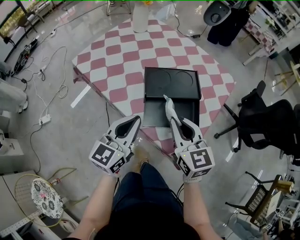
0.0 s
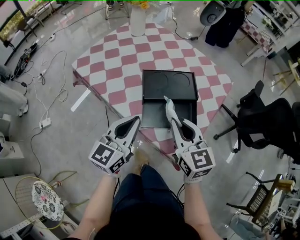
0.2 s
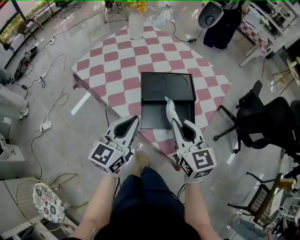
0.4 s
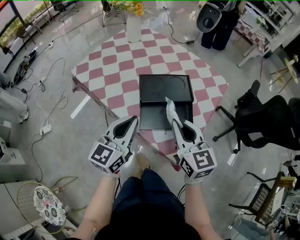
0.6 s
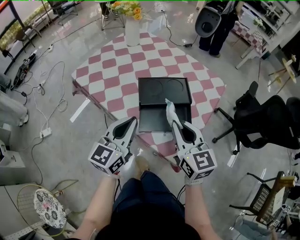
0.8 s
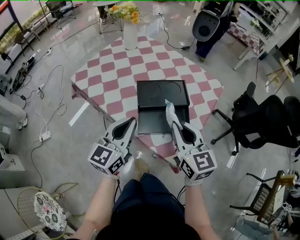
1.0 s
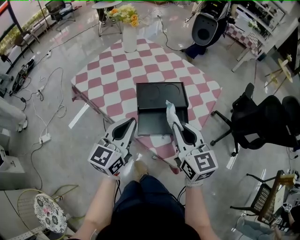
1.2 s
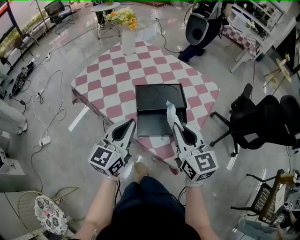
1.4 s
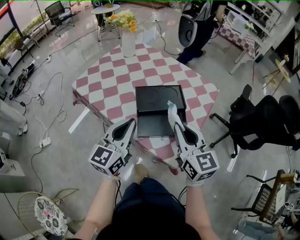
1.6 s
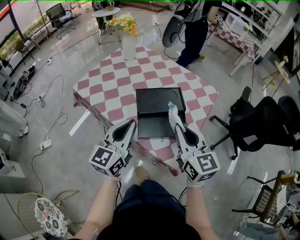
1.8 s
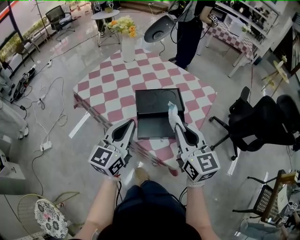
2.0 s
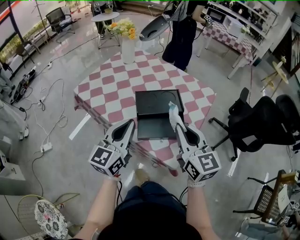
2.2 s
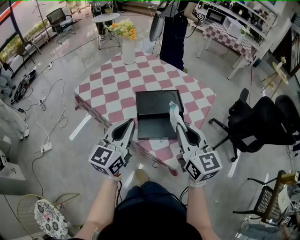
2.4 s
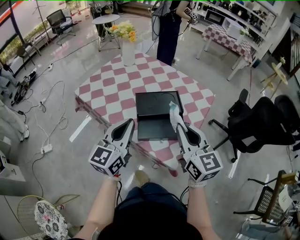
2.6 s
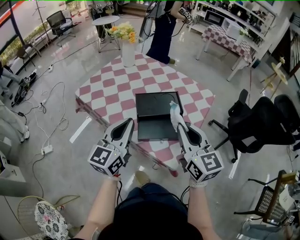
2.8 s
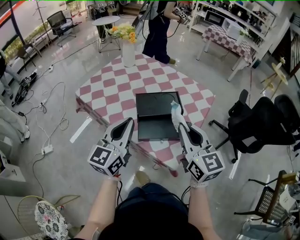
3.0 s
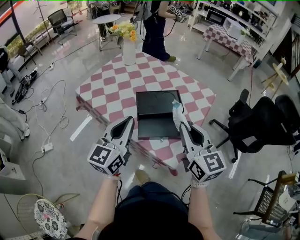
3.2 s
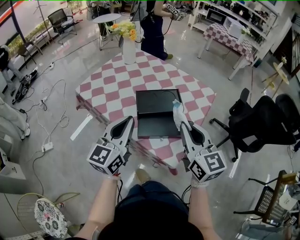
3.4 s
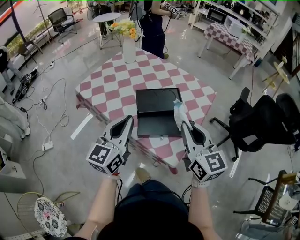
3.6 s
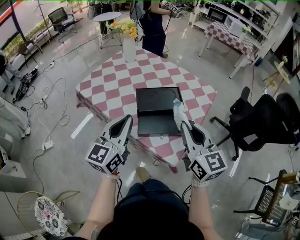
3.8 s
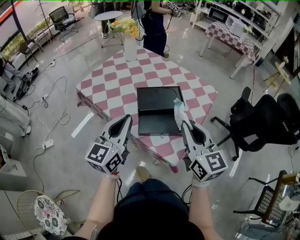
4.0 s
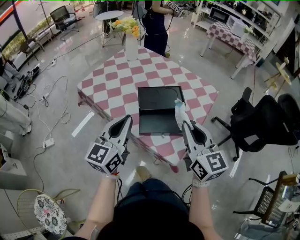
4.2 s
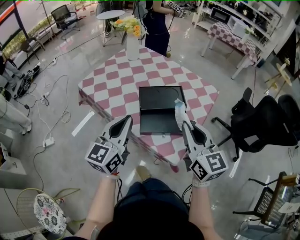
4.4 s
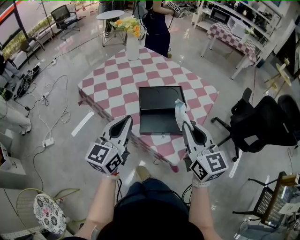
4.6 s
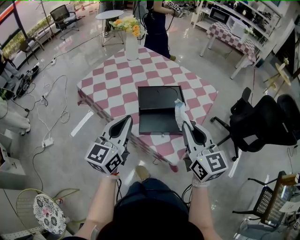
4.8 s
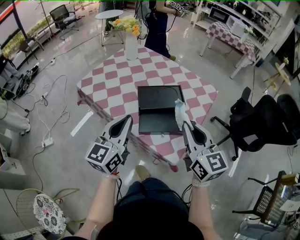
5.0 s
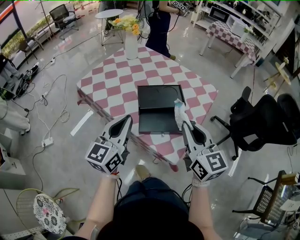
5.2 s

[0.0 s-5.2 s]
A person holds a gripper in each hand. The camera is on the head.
0.0 to 1.8 s: The grippers both shift upward by roughly 10 cm.
1.8 to 5.2 s: The grippers move only a little.

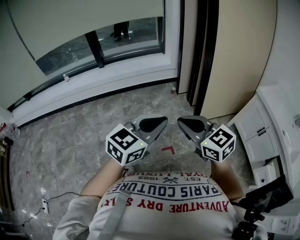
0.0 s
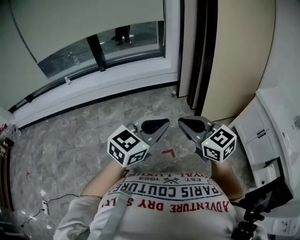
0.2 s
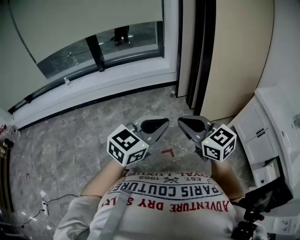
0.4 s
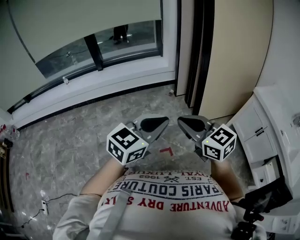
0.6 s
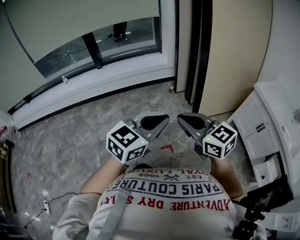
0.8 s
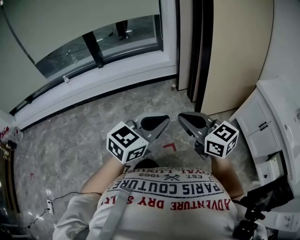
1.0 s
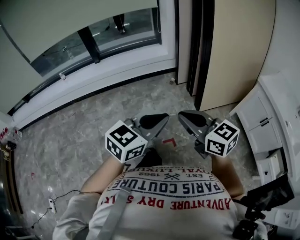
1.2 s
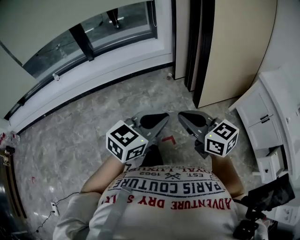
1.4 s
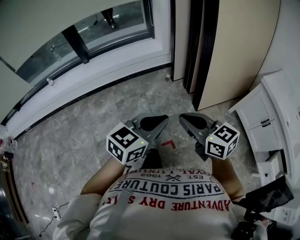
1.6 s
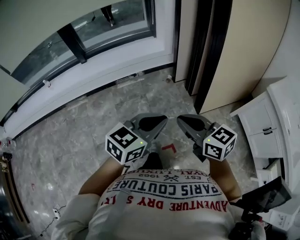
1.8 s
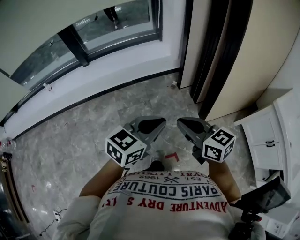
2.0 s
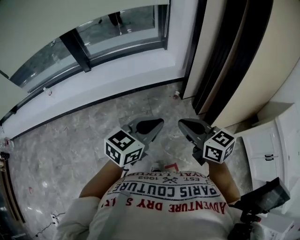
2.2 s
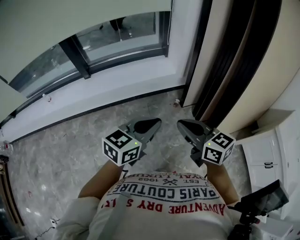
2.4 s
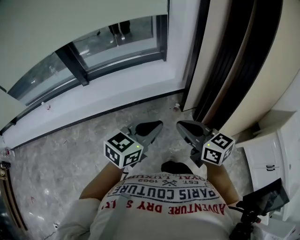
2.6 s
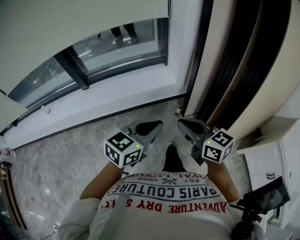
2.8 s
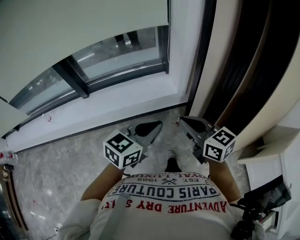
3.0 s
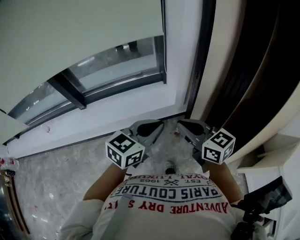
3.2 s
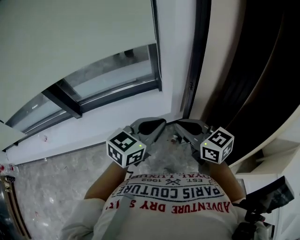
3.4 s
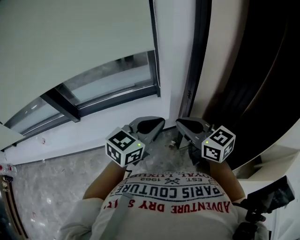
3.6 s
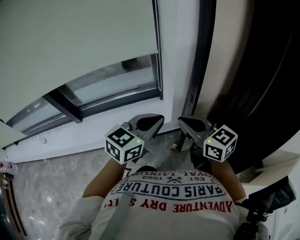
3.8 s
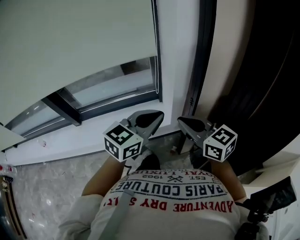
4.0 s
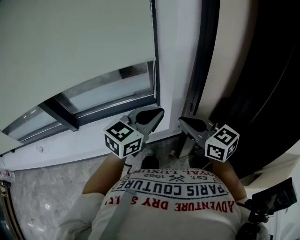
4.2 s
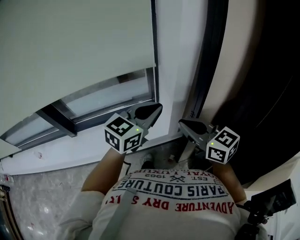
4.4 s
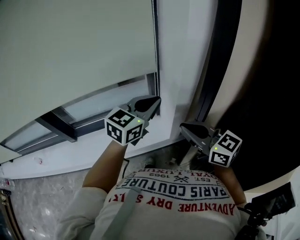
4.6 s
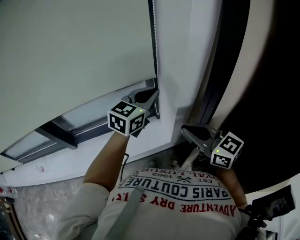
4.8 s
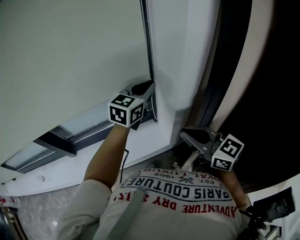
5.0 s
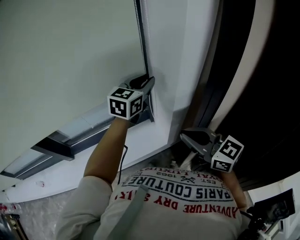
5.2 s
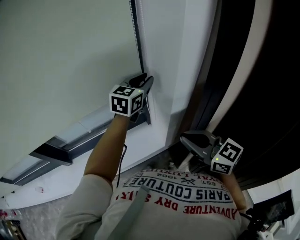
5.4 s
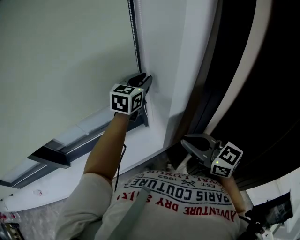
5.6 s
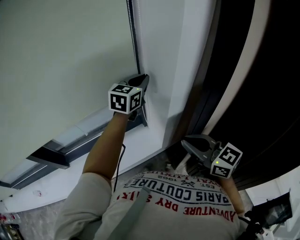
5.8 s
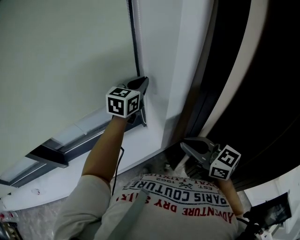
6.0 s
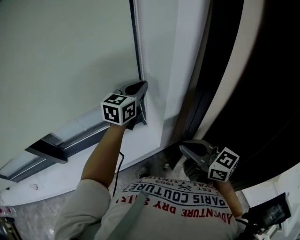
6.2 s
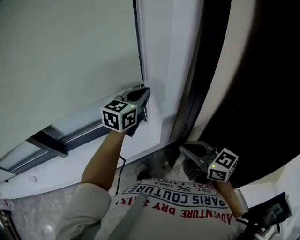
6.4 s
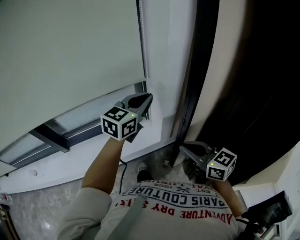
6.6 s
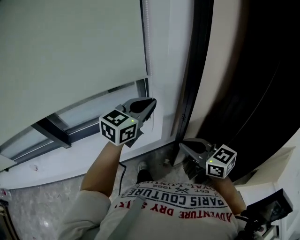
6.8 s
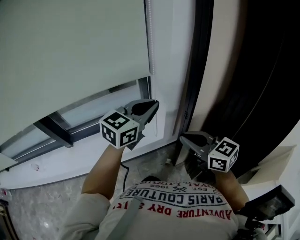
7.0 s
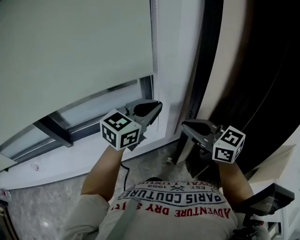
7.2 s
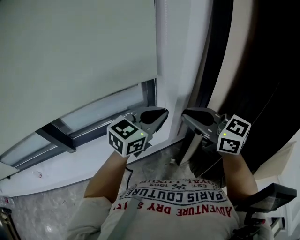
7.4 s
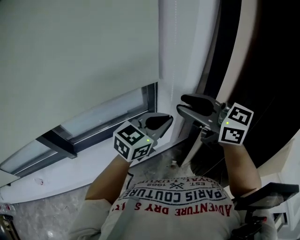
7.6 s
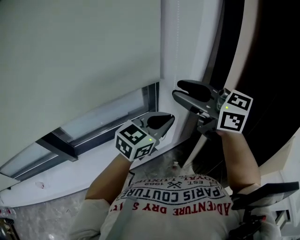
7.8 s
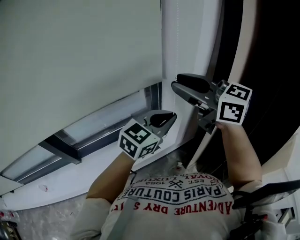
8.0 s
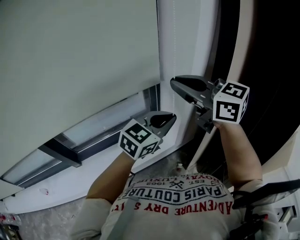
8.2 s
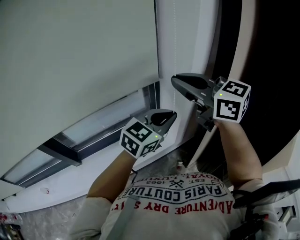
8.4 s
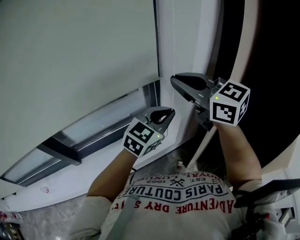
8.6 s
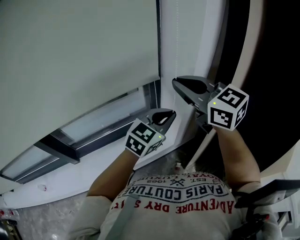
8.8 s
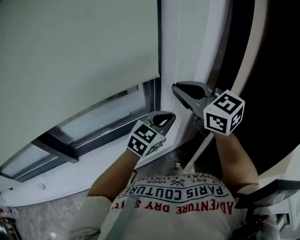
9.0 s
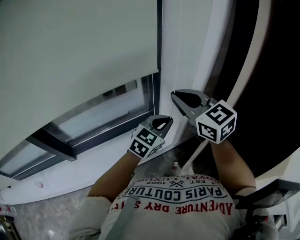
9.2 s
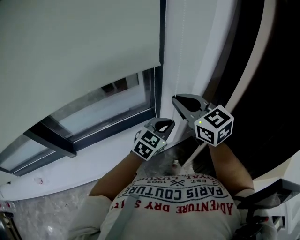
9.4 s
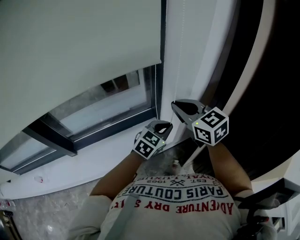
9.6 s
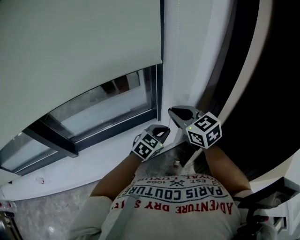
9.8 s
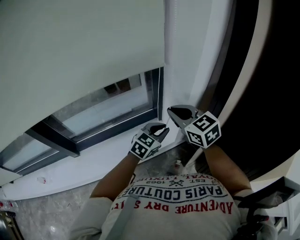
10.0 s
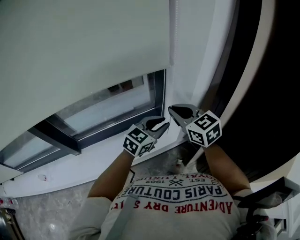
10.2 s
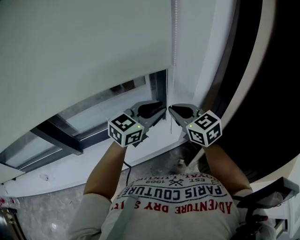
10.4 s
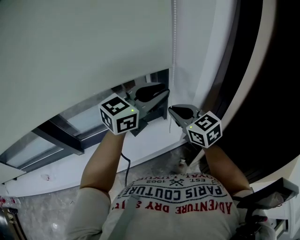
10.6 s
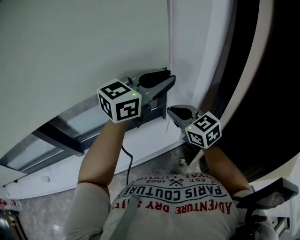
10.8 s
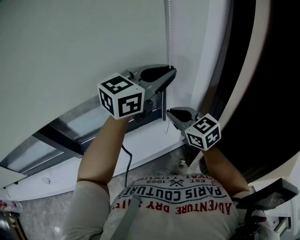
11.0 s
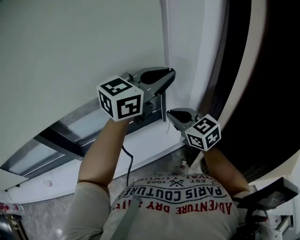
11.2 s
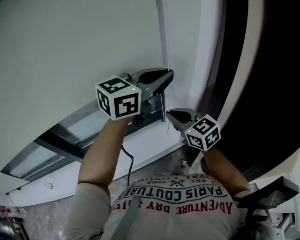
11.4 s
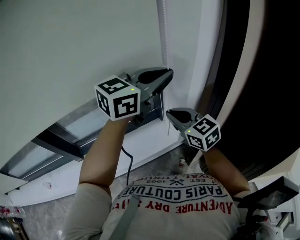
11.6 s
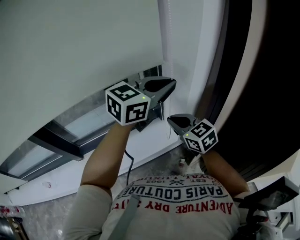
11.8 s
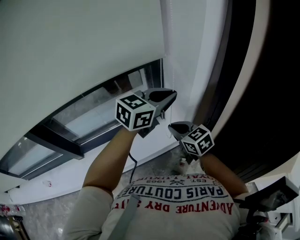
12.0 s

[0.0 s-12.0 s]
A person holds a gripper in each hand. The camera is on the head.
0.0 to 1.6 s: The grippers both shift forward and downward by roughly 15 cm.
1.6 to 3.0 s: The pair of grippers is taken forward, some 50 cm.
3.0 to 4.4 s: Both grippers move forward, some 30 cm.
4.4 to 6.0 s: The left gripper moves forward, about 25 cm, and opens, then closes again.
6.0 to 7.6 s: The left gripper travels backward by some 30 cm, and swivels some 20 degrees; the right gripper is displaced upward and to the left by some 20 cm, and opens.
7.6 to 9.0 s: The right gripper travels forward by about 10 cm, and closes up. The left gripper moves forward and downward, about 10 cm.
9.0 to 10.4 s: The left gripper travels to the left by approximately 5 cm, goes downward and returns, approximately 15 cm each way, and opens up. The right gripper shifts some 15 cm downward.
10.4 to 12.0 s: The left gripper travels to the right by approximately 5 cm, travels upward and back again, about 15 cm each way, and closes up, while the right gripper is displaced downward by some 10 cm.

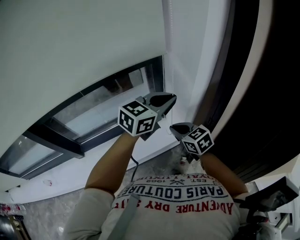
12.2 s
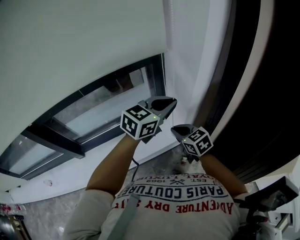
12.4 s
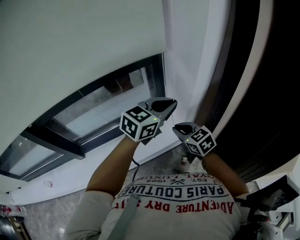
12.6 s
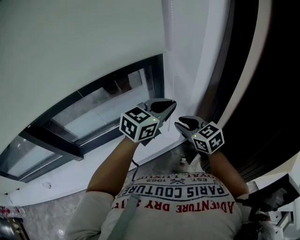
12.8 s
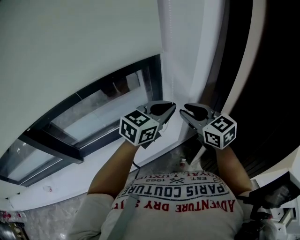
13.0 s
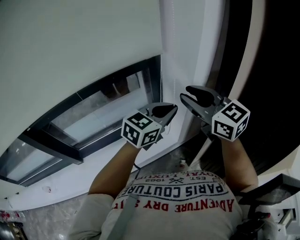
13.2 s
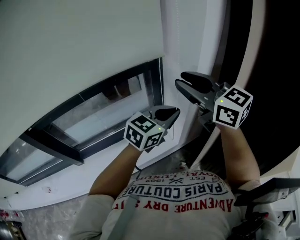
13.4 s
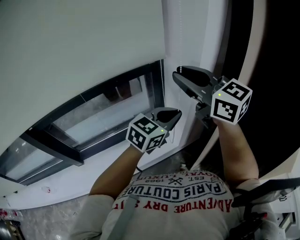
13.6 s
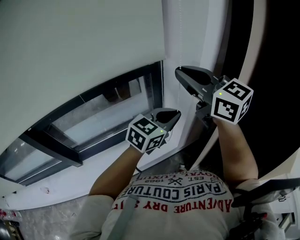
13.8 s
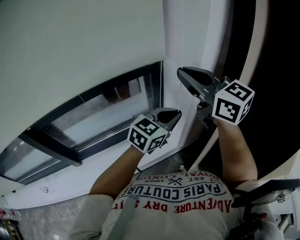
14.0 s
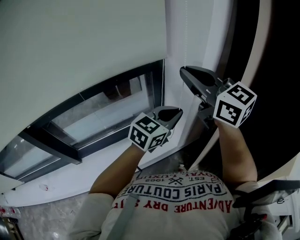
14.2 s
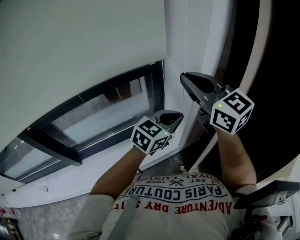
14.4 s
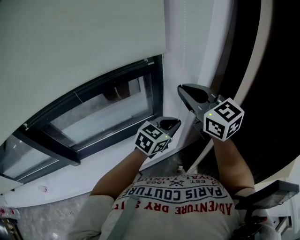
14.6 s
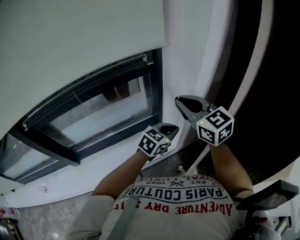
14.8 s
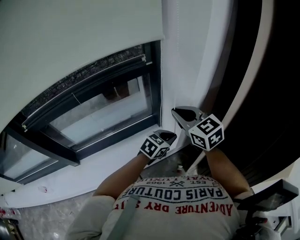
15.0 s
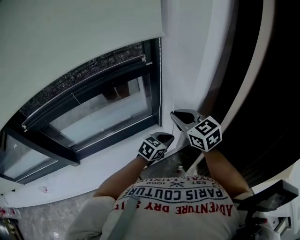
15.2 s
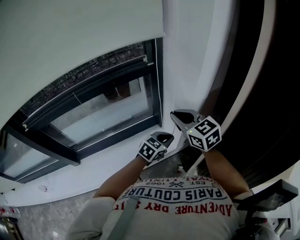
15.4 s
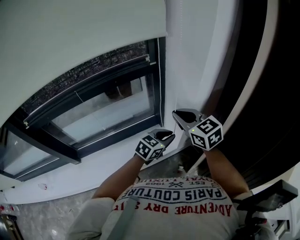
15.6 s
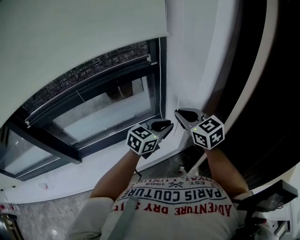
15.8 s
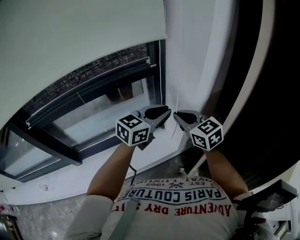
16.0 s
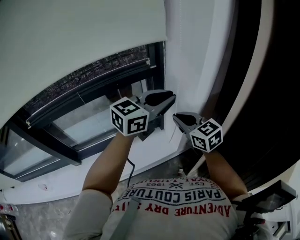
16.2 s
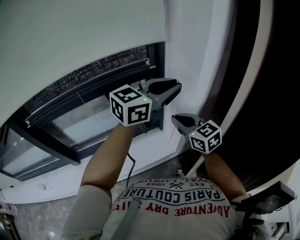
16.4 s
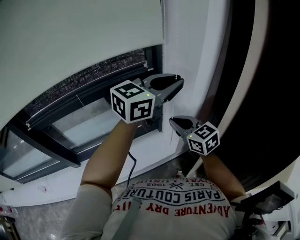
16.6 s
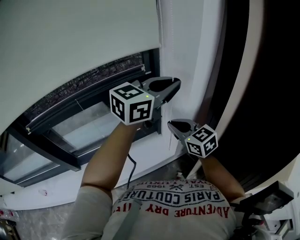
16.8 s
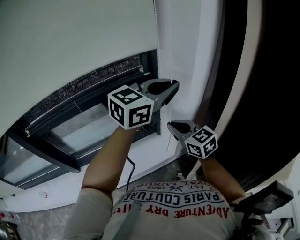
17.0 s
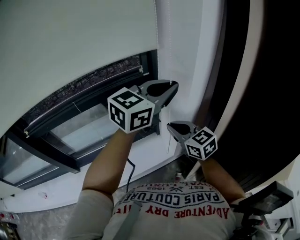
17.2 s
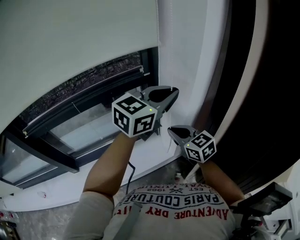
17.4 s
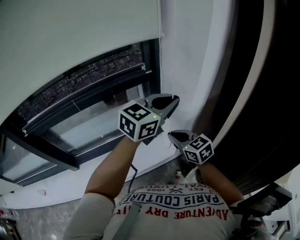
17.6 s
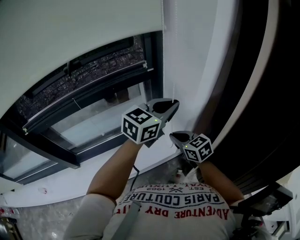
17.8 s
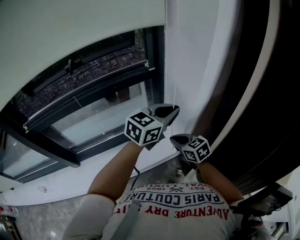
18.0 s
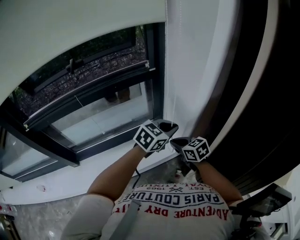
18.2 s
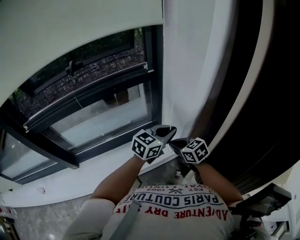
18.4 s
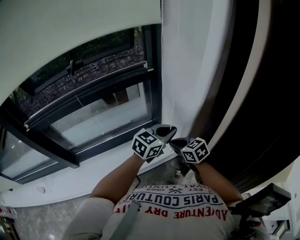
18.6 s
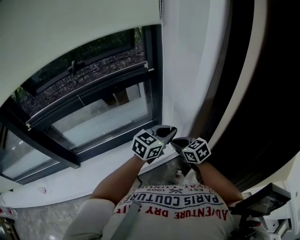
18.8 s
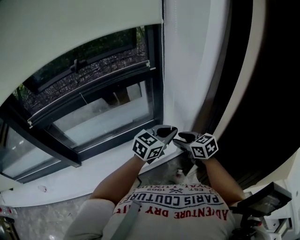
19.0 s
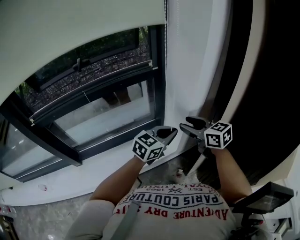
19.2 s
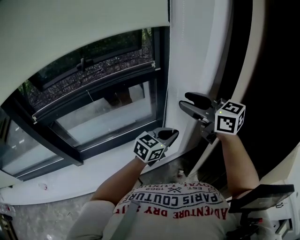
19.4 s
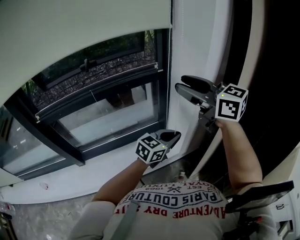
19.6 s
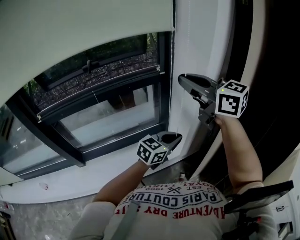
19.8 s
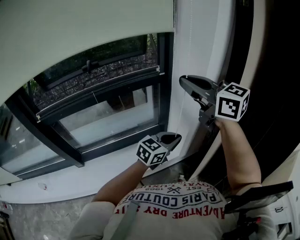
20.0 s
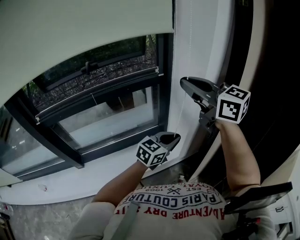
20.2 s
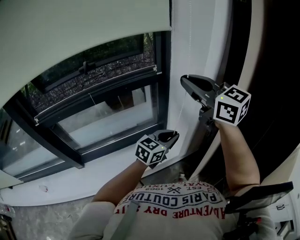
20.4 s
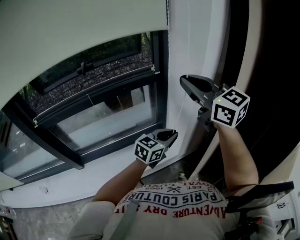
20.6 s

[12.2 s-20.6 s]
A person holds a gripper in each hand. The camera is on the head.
12.2 to 13.6 s: The right gripper moves upward, roughly 30 cm, angles its fingers upward, by about 30 degrees, and opens its fingers.
13.6 to 15.0 s: Both grippers move downward, about 20 cm.
15.0 to 16.4 s: The left gripper goes about 30 cm upward, and tilts its fingers roughly 30 degrees upward.
16.4 to 17.8 s: The grippers both shift downward by approximately 10 cm.
17.8 to 19.2 s: The left gripper heads downward and backward, covering about 15 cm. Meanwhile the right gripper moves upward, some 10 cm, and opens up.
19.2 to 20.6 s: The right gripper goes about 25 cm upward, turns by approximately 30 degrees, and closes.
